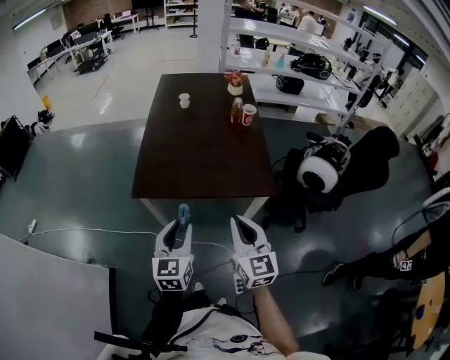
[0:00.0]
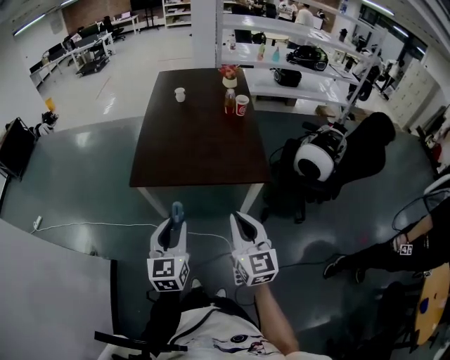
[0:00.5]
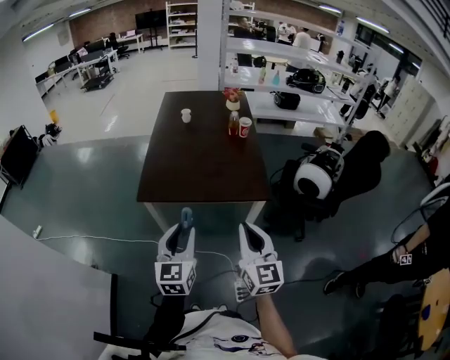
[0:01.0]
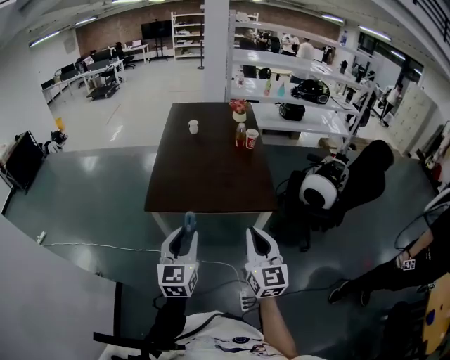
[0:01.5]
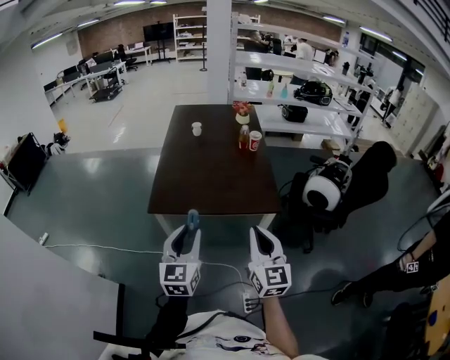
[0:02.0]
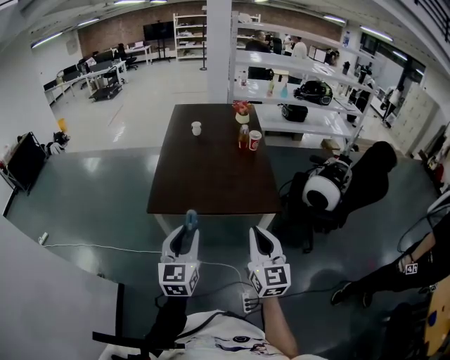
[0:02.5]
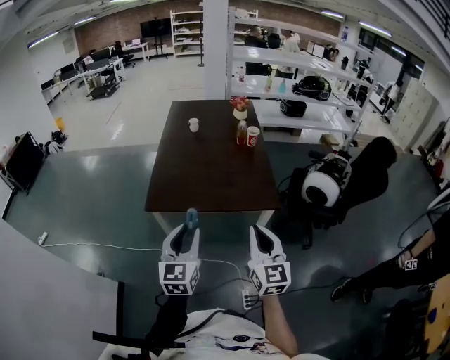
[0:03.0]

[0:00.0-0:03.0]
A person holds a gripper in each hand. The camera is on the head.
0:00.0 to 0:01.5: The left gripper shifts about 5 cm upward. Meanwhile the right gripper shifts by some 5 cm.
0:01.5 to 0:03.0: Neither gripper changes place.

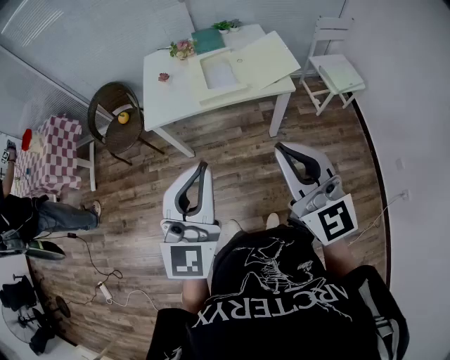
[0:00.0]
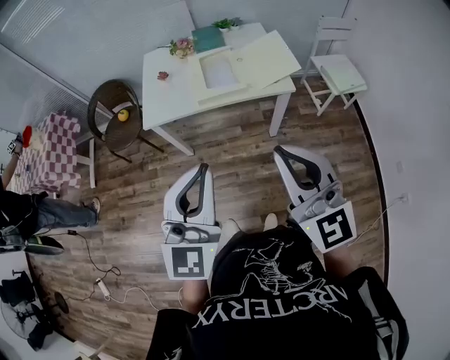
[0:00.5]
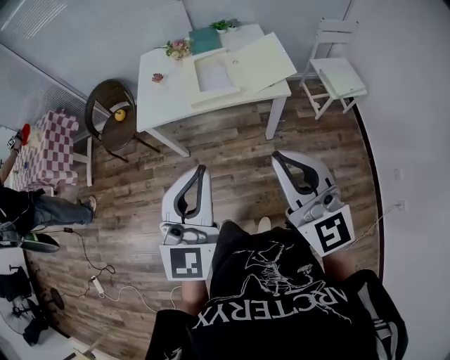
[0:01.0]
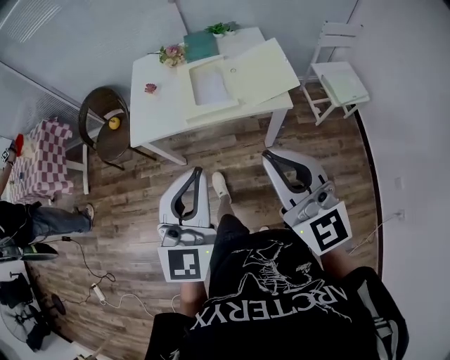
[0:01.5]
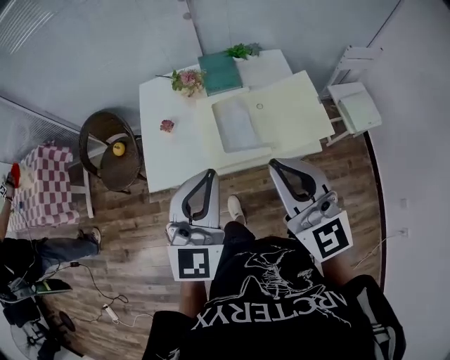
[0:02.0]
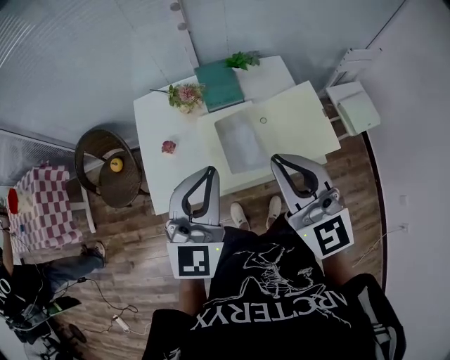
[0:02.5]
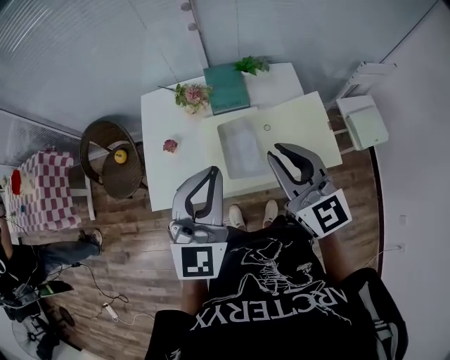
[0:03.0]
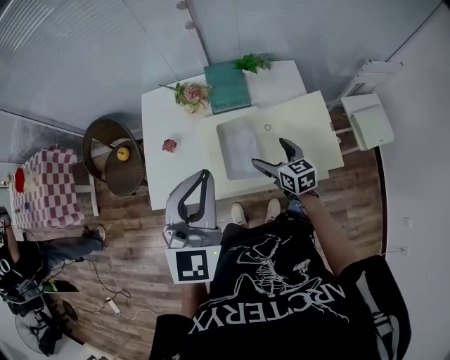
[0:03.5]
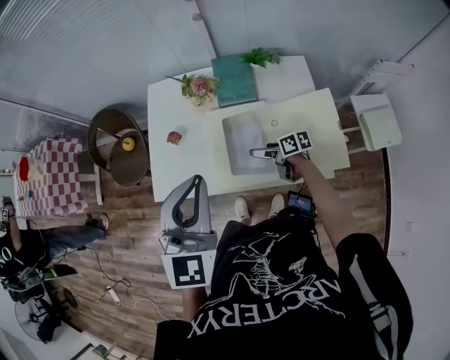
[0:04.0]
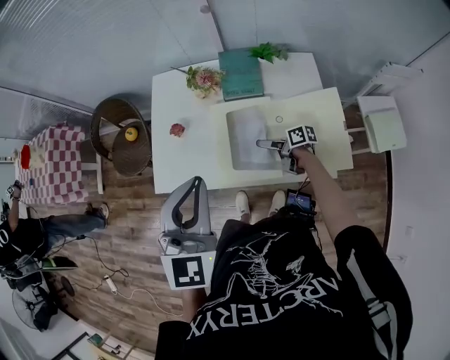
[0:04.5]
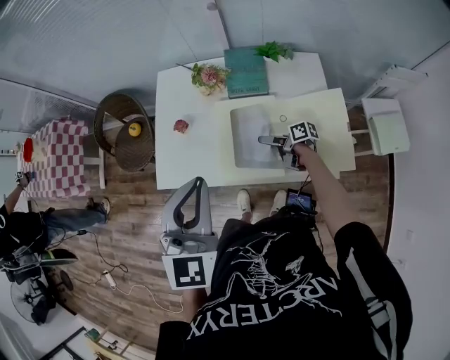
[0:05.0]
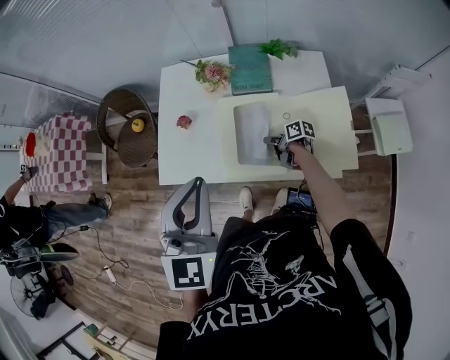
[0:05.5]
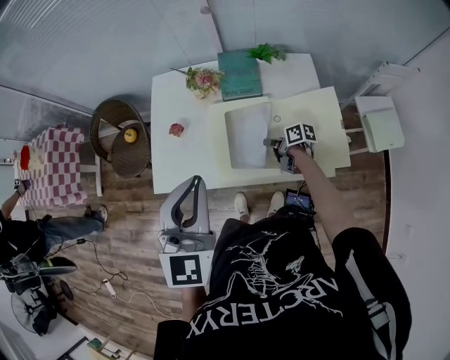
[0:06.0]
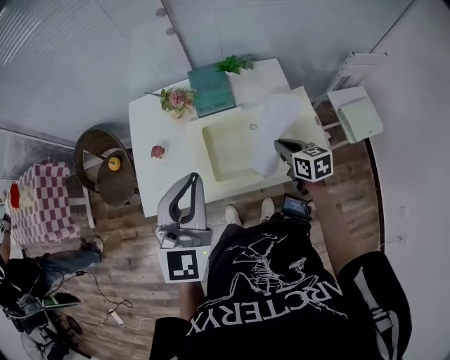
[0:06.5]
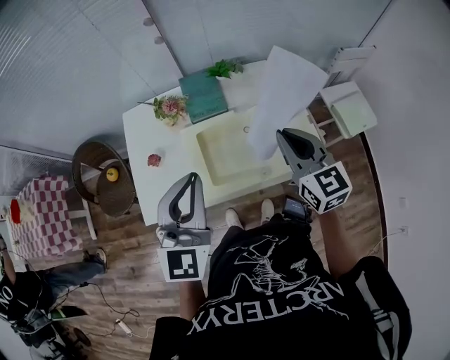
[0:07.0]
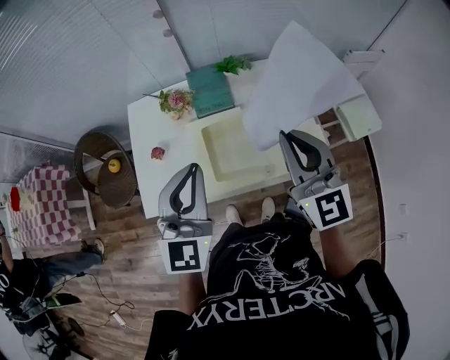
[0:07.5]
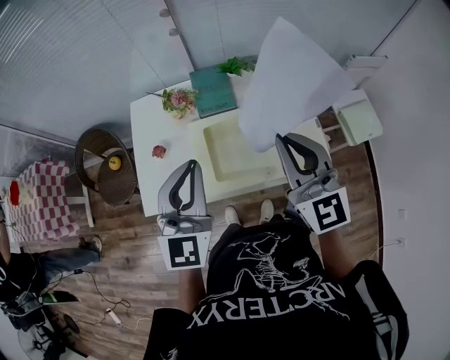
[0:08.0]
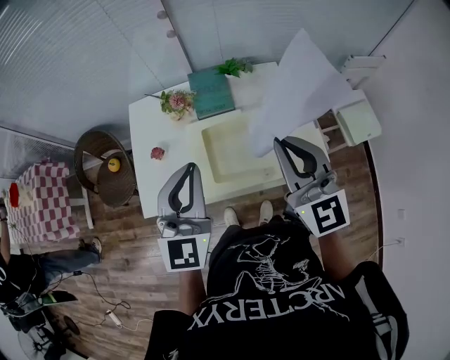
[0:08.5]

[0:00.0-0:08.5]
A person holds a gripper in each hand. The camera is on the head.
0:00.0 to 0:02.0: The two grippers go some 35 cm forward.
0:02.0 to 0:04.0: The left gripper ends up approximately 10 cm from where it was; the right gripper moves downward, about 40 cm, angles its fingers downward, by roughly 30 degrees, and opens its fingers.
0:04.0 to 0:06.5: The right gripper moves upward, approximately 15 cm, changes its angle by some 40 degrees, and closes.
0:06.5 to 0:08.5: The right gripper is displaced upward by about 25 cm, and tilts its fingers roughly 30 degrees upward.

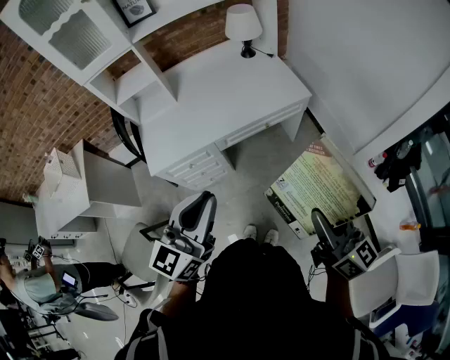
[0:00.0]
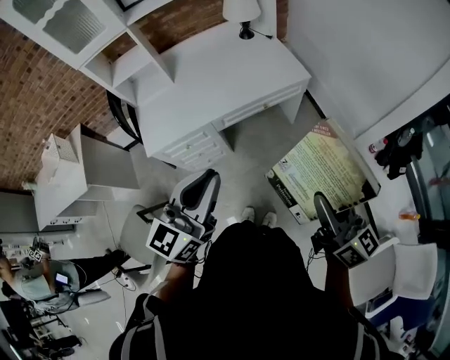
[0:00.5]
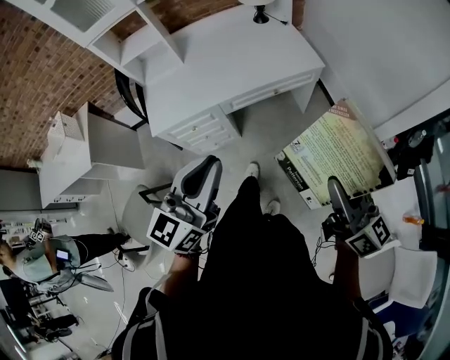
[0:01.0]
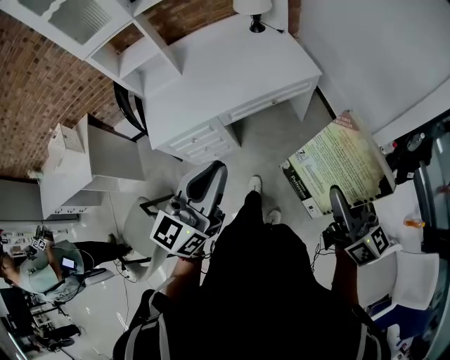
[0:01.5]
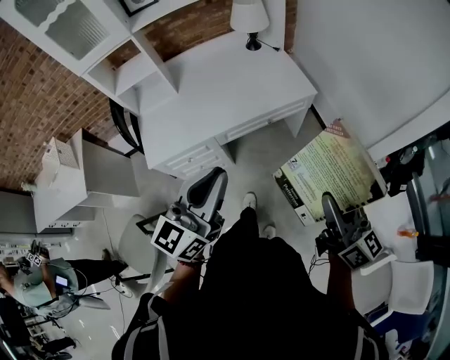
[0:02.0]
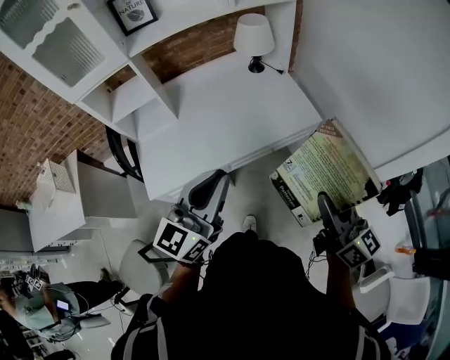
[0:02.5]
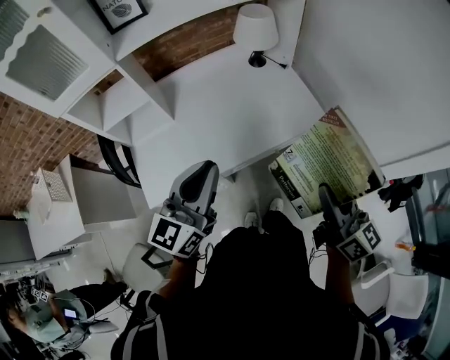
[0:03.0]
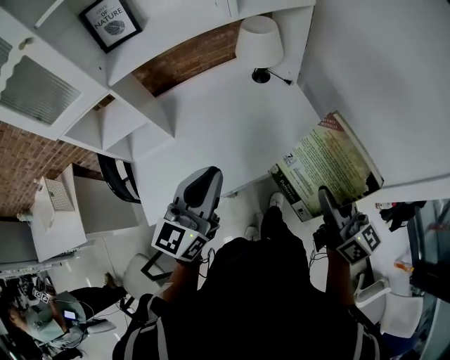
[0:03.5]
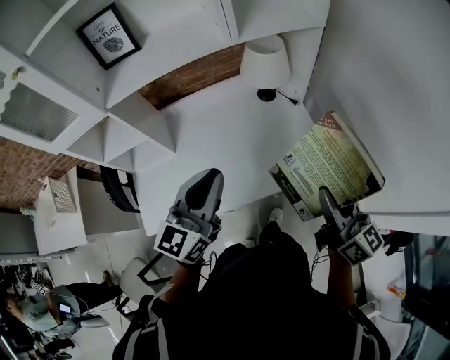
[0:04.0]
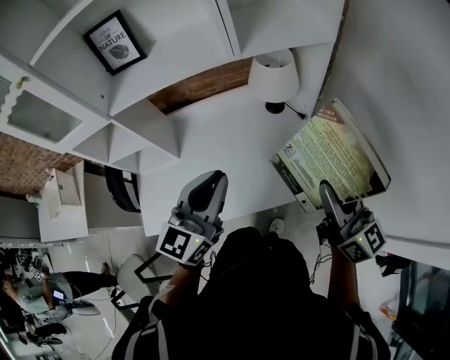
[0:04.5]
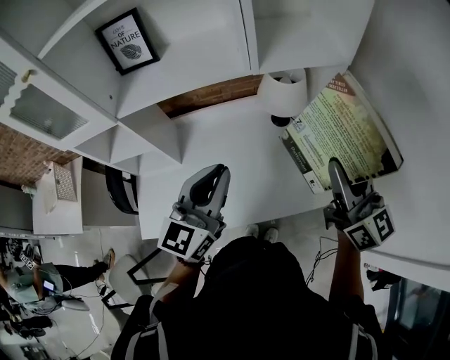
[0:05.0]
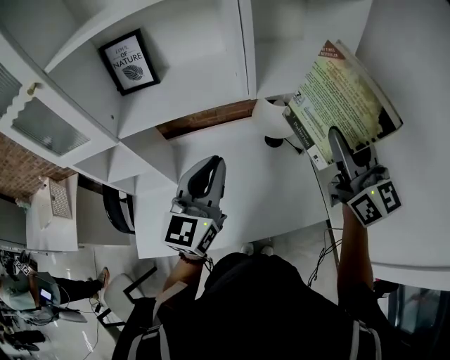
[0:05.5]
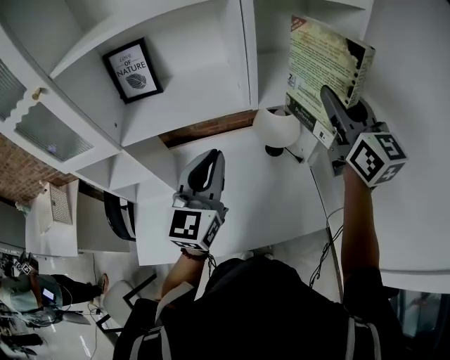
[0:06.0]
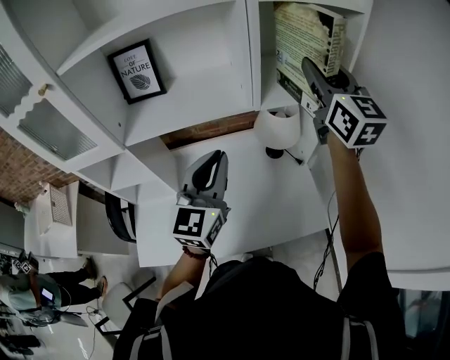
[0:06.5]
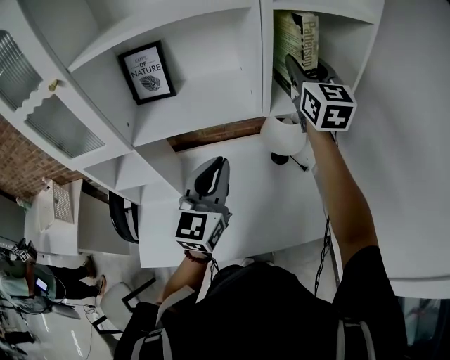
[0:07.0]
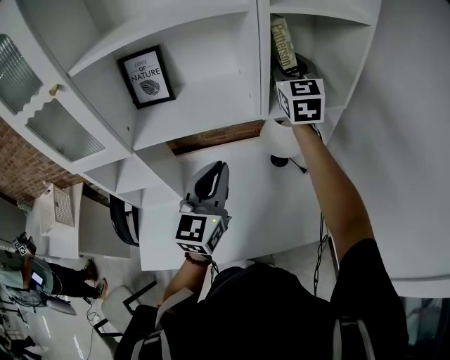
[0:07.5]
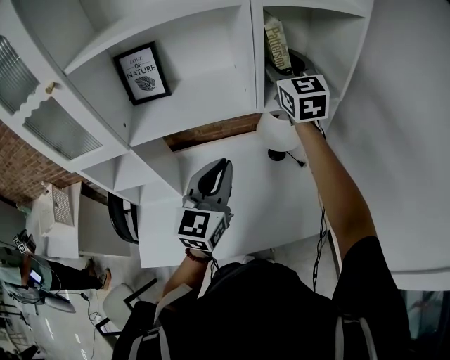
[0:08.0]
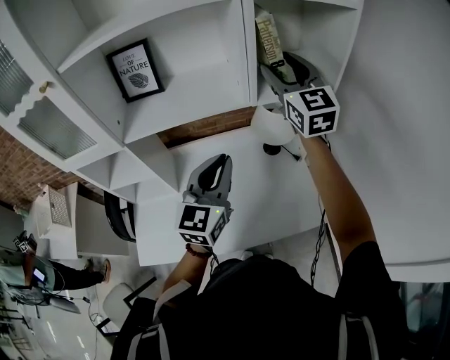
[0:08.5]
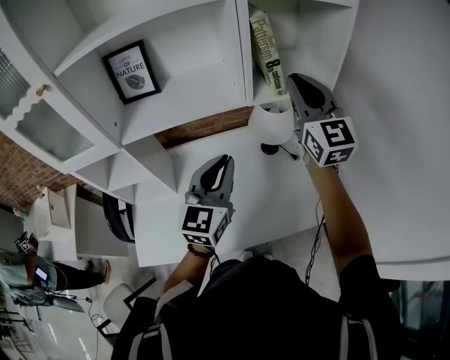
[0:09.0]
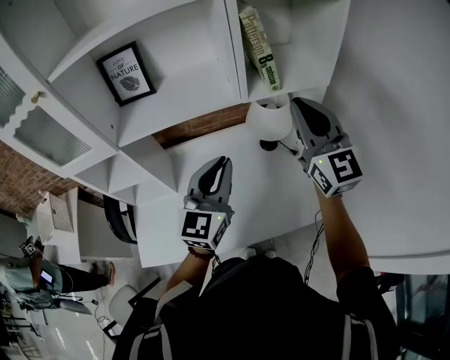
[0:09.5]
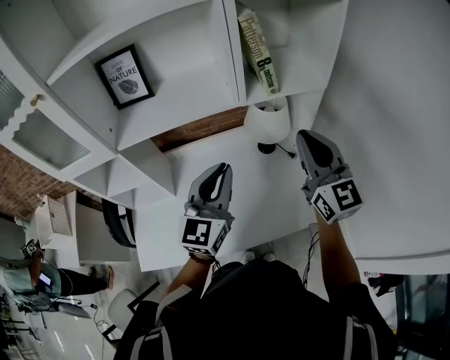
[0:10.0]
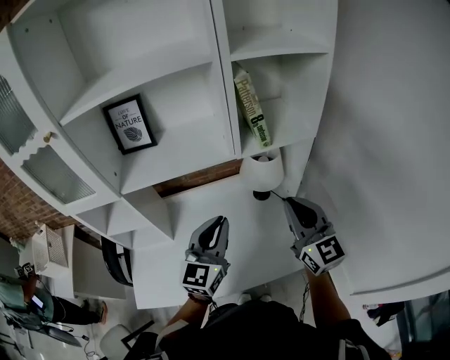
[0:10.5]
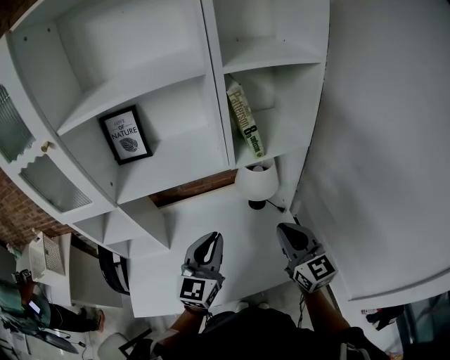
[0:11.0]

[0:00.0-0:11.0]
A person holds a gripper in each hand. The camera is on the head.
0:00.0 to 0:02.0: Both grippers move forward, approximately 5 cm.
0:02.0 to 0:03.5: Both grippers move forward, about 30 cm.
0:03.5 to 0:05.5: The left gripper is displaced forward by roughly 20 cm, and changes its angle by some 20 degrees. Meanwhile the right gripper travels forward and upward by some 35 cm, and swivels about 30 degrees.
0:05.5 to 0:07.5: The right gripper moves forward and to the left, approximately 25 cm, and rotates about 30 degrees.
0:07.5 to 0:09.0: The right gripper travels backward and to the right by about 15 cm, and closes its fingers.
0:09.0 to 0:11.0: The right gripper travels downward and backward by some 20 cm.

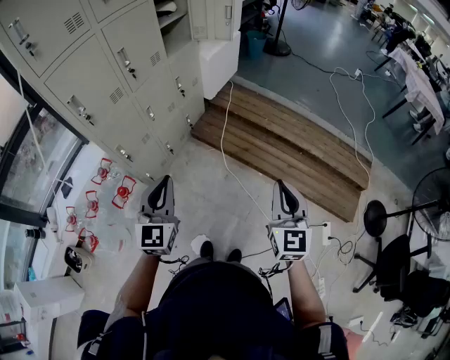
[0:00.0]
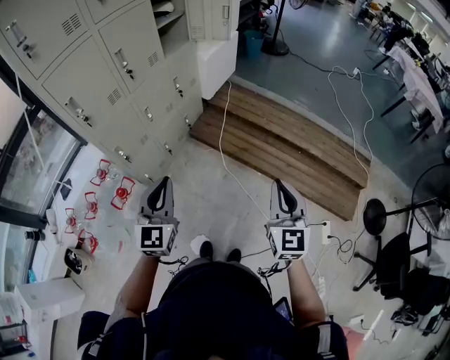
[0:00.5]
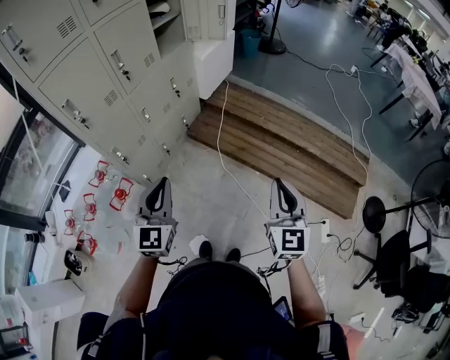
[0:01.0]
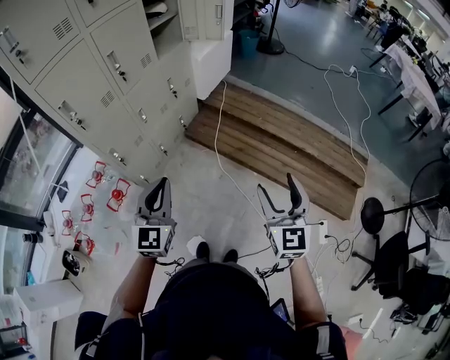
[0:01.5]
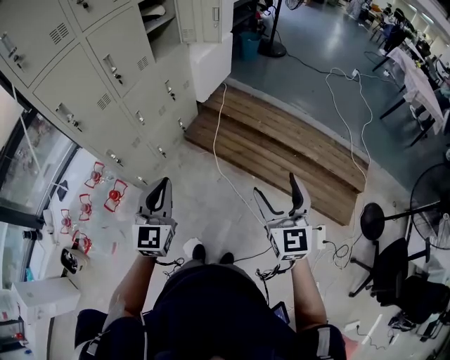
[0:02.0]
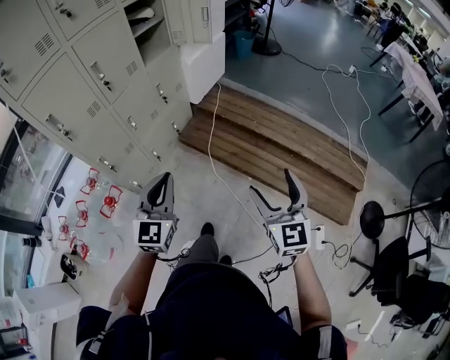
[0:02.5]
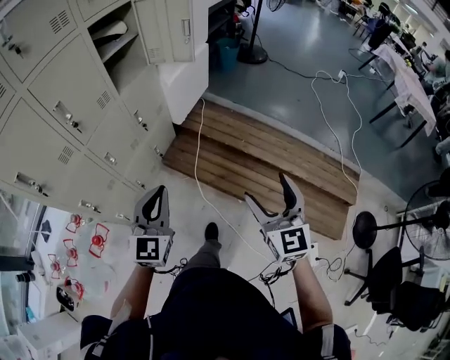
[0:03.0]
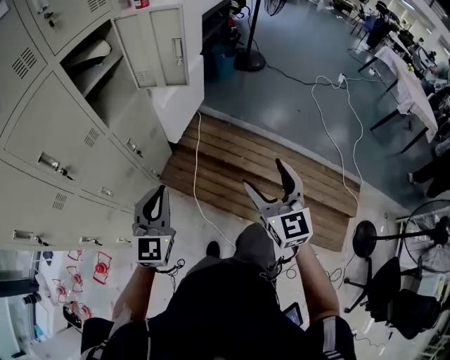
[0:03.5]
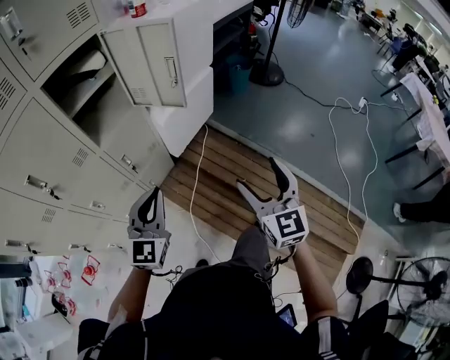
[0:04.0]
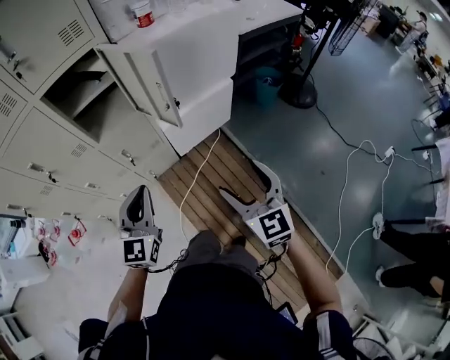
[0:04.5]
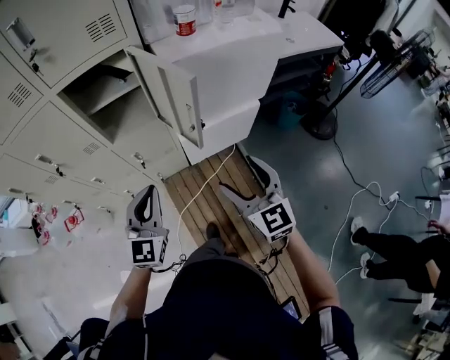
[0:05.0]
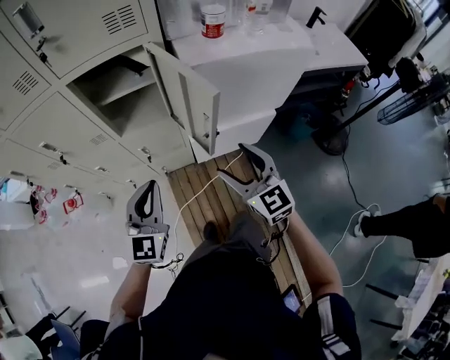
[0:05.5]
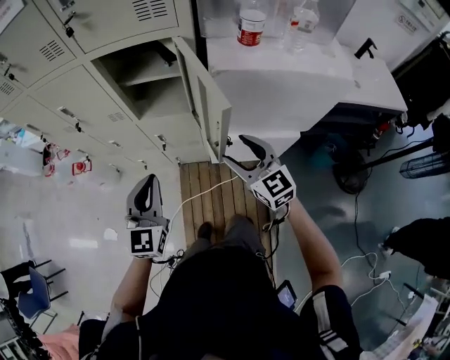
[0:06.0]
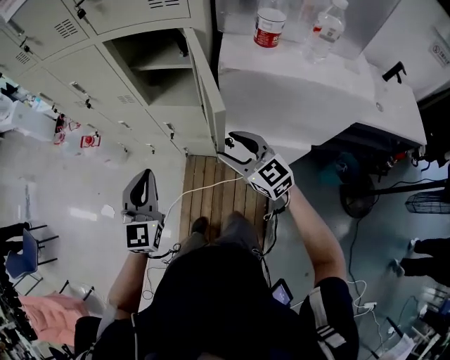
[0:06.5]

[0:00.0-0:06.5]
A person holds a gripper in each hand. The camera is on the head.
0:00.0 to 0:02.0: The right gripper changes place by approximately 5 cm, and opens. Meanwhile the left gripper moves to the right, roughly 5 cm.
0:02.0 to 0:04.5: The two grippers travel together, some 70 cm. The left gripper changes its angle by approximately 30 degrees. Meanwhile the right gripper turns by approximately 40 degrees.
0:04.5 to 0:06.5: The left gripper shifts by roughly 10 cm, and swivels some 40 degrees, while the right gripper shifts by approximately 30 cm, turns by some 60 degrees, and closes its fingers.
